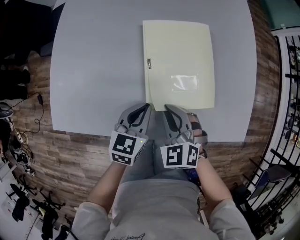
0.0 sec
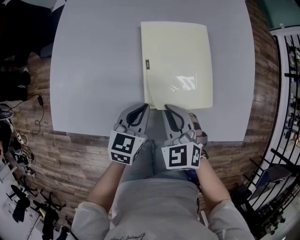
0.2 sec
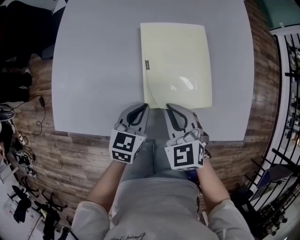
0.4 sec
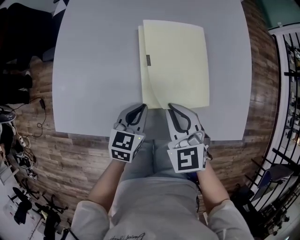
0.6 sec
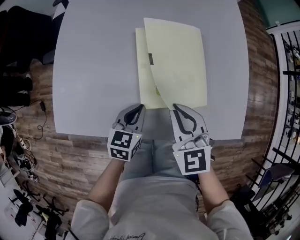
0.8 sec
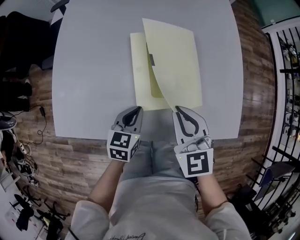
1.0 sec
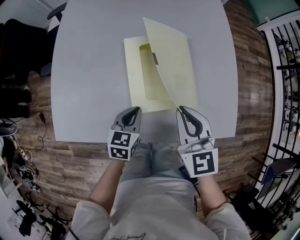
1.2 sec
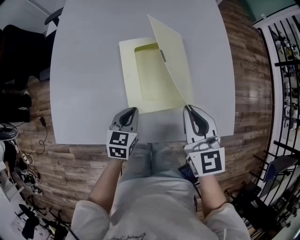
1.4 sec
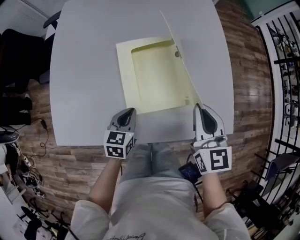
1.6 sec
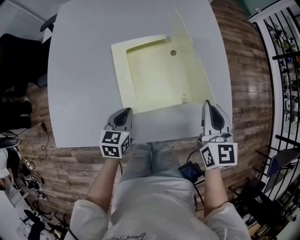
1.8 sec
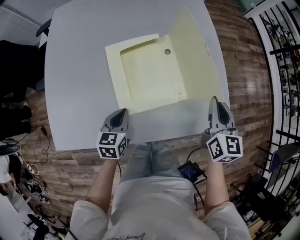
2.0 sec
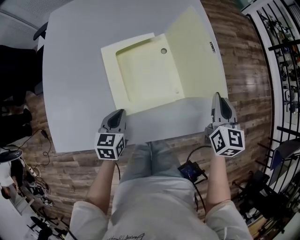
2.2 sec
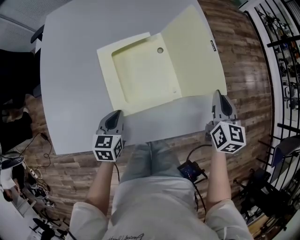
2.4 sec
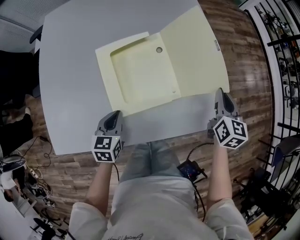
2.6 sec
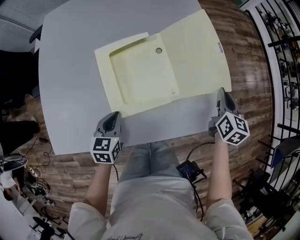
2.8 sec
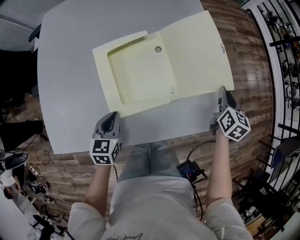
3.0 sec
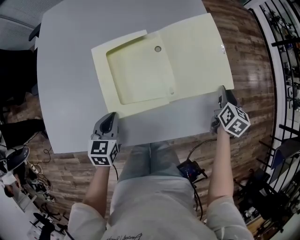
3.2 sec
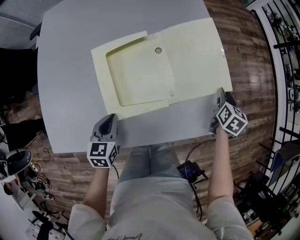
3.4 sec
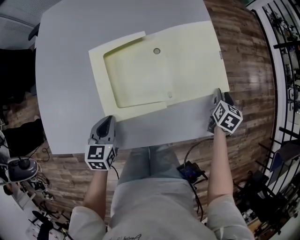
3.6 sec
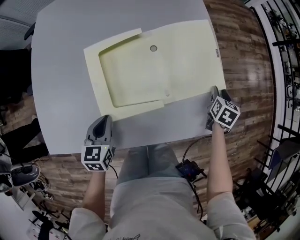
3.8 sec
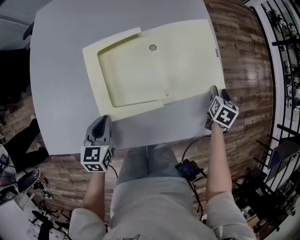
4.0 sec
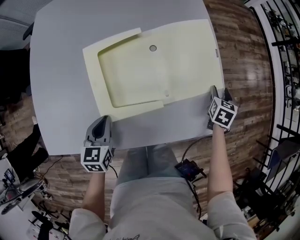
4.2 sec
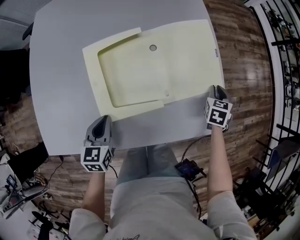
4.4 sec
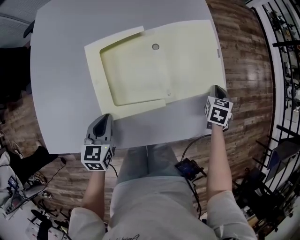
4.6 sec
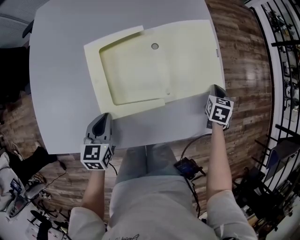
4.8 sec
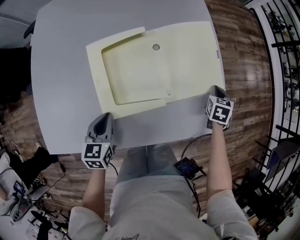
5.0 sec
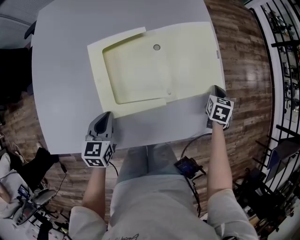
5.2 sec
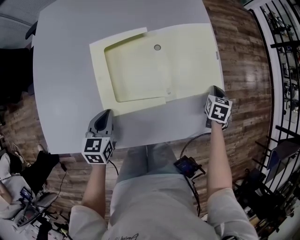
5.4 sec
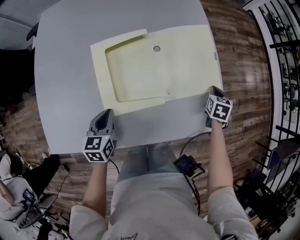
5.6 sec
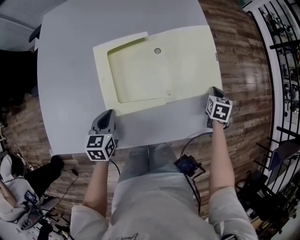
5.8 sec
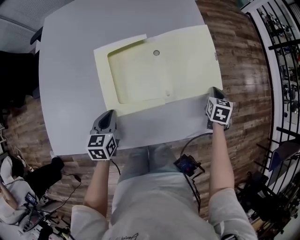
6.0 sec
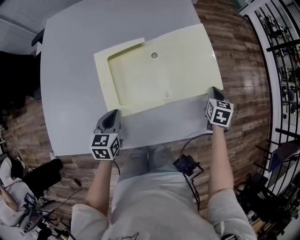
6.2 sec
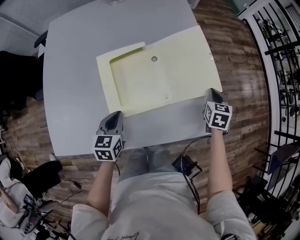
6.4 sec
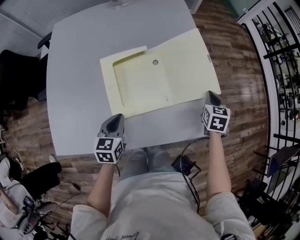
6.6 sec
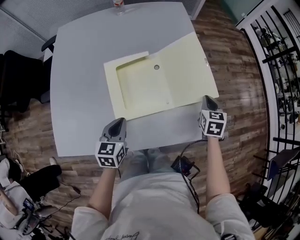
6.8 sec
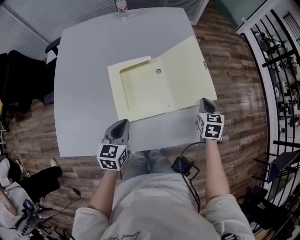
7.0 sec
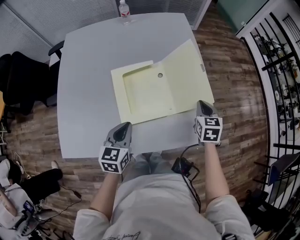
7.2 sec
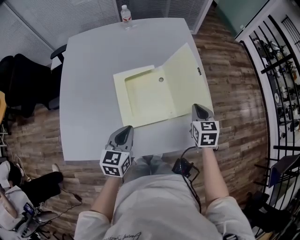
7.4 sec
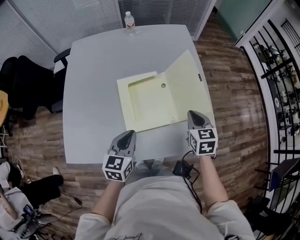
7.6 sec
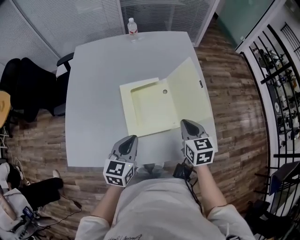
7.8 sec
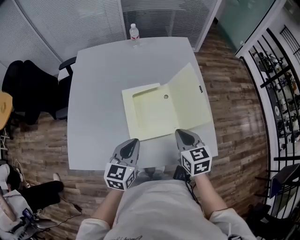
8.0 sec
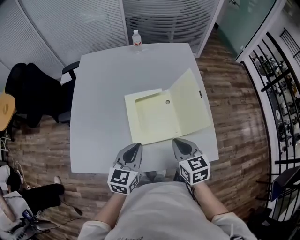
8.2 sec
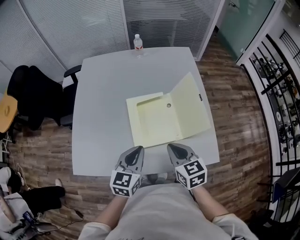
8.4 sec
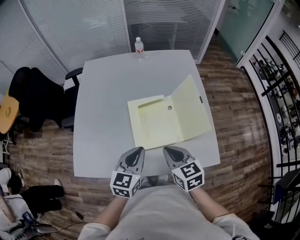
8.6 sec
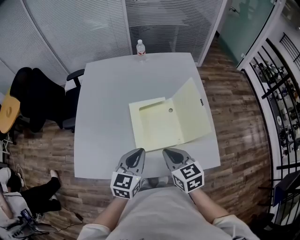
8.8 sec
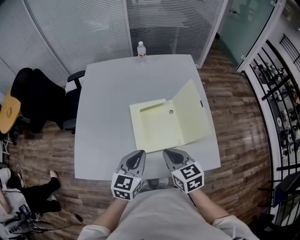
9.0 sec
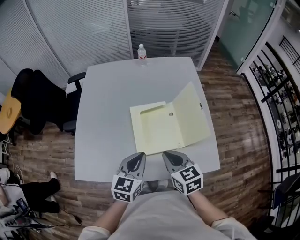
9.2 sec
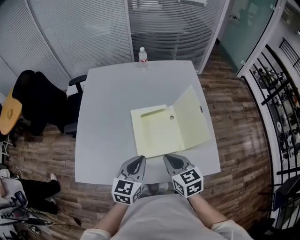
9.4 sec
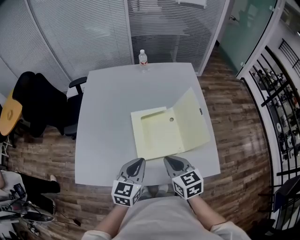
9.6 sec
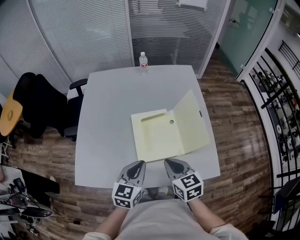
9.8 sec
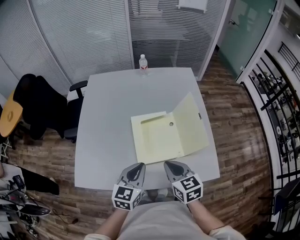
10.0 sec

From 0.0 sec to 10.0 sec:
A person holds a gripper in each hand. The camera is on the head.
From 0.0 sec to 1.4 sec: The right gripper moves upward and to the right, about 15 cm, and swivels some 40 degrees.
From 1.4 sec to 2.8 sec: The right gripper shifts some 25 cm to the right, and rotates roughly 40 degrees.
From 2.8 sec to 4.2 sec: The right gripper shifts approximately 15 cm downward and to the right, turns by approximately 30 degrees, and opens its fingers.
From 4.2 sec to 5.8 sec: The right gripper closes its fingers.
From 5.8 sec to 7.2 sec: The left gripper heads upward, covering roughly 10 cm. Meanwhile the right gripper moves upward and to the left, approximately 20 cm.
From 7.2 sec to 8.6 sec: The left gripper is displaced upward by approximately 10 cm. The right gripper moves to the left, backward and upward, about 25 cm, and swivels approximately 30 degrees.
From 8.6 sec to 10.0 sec: There are only small adjustments of the grippers.

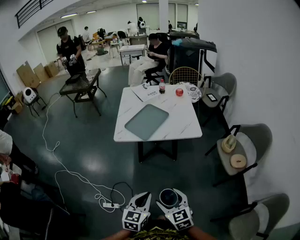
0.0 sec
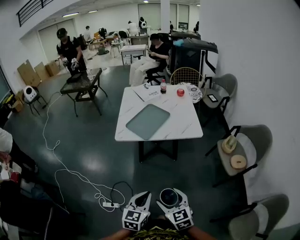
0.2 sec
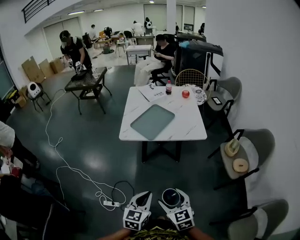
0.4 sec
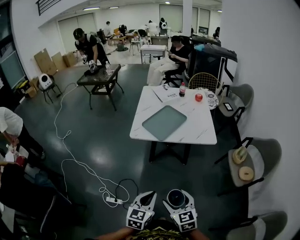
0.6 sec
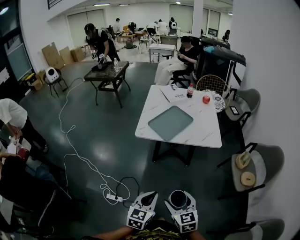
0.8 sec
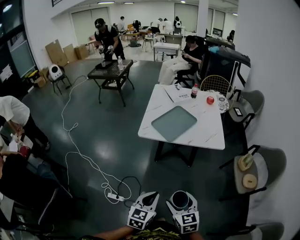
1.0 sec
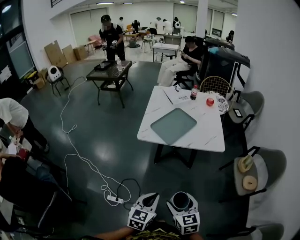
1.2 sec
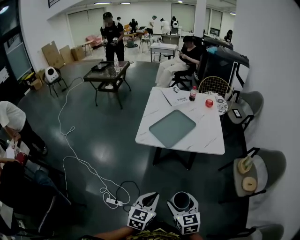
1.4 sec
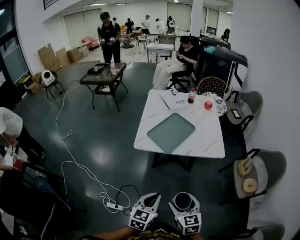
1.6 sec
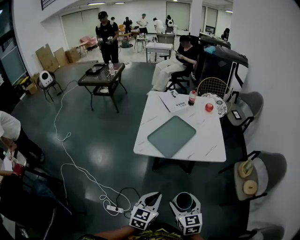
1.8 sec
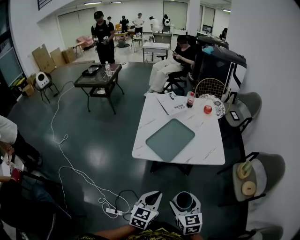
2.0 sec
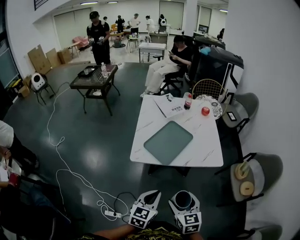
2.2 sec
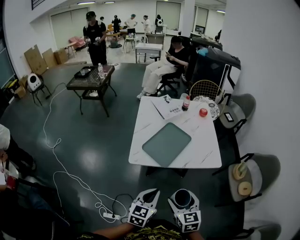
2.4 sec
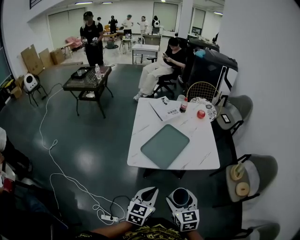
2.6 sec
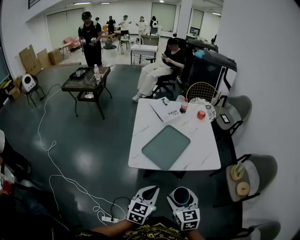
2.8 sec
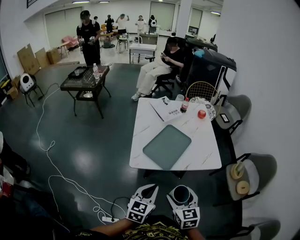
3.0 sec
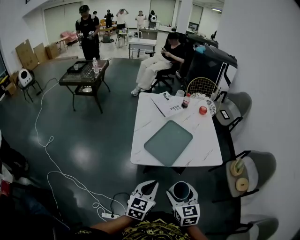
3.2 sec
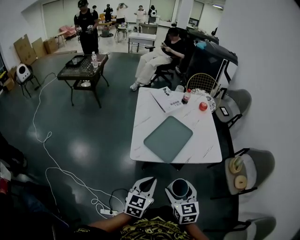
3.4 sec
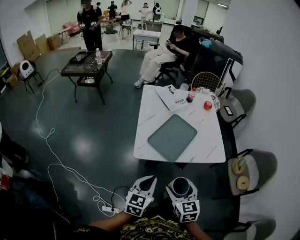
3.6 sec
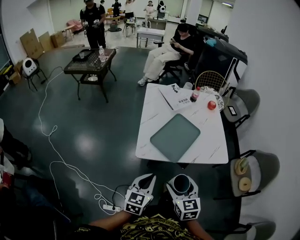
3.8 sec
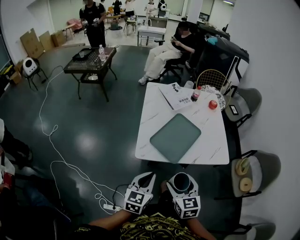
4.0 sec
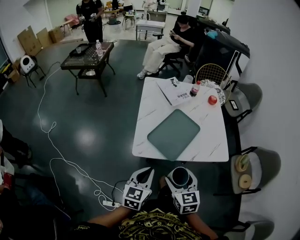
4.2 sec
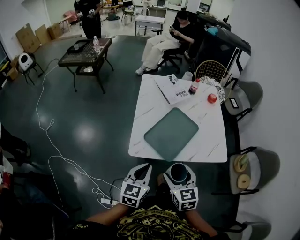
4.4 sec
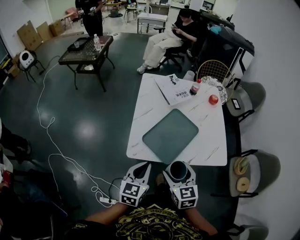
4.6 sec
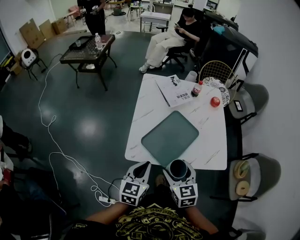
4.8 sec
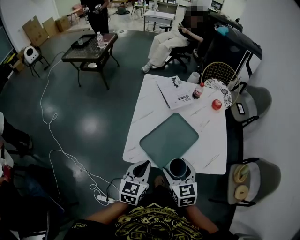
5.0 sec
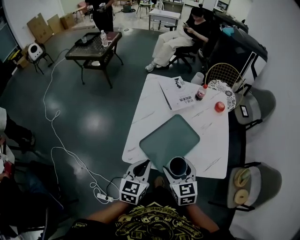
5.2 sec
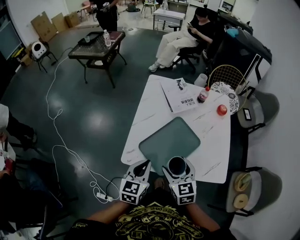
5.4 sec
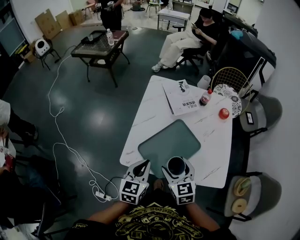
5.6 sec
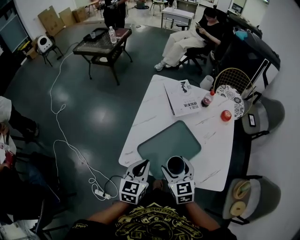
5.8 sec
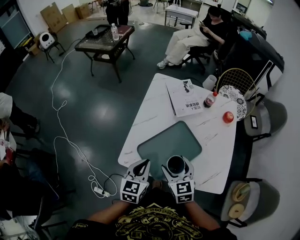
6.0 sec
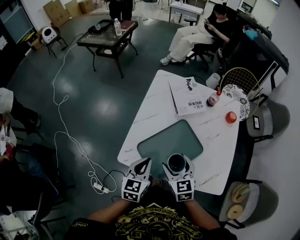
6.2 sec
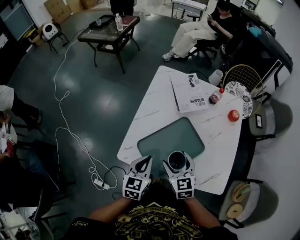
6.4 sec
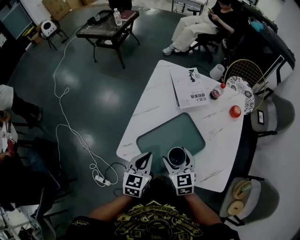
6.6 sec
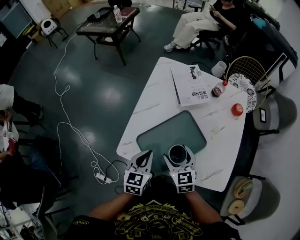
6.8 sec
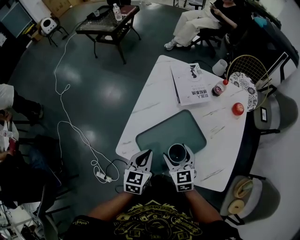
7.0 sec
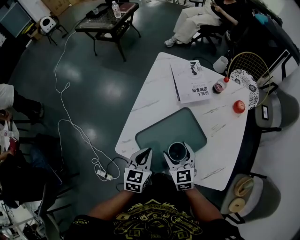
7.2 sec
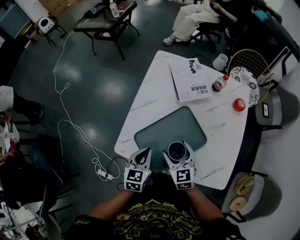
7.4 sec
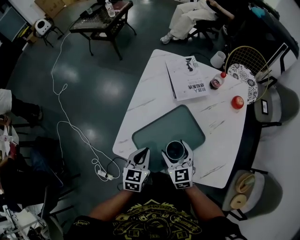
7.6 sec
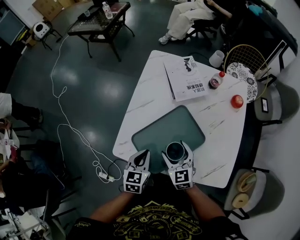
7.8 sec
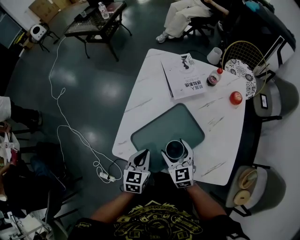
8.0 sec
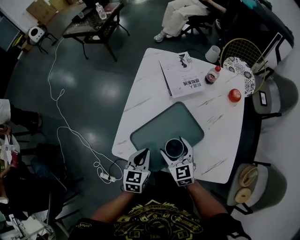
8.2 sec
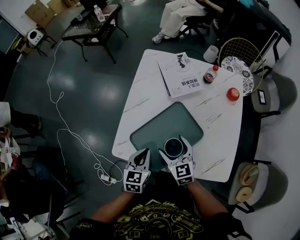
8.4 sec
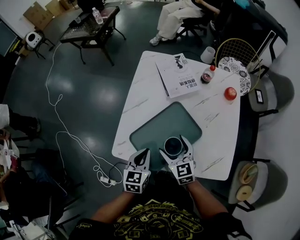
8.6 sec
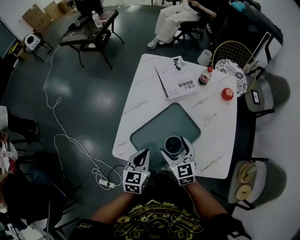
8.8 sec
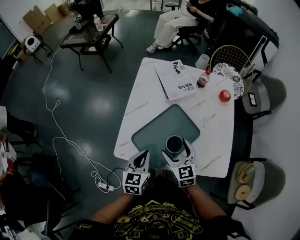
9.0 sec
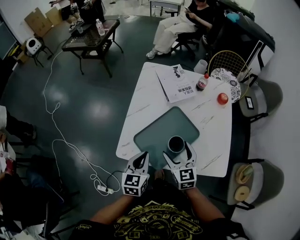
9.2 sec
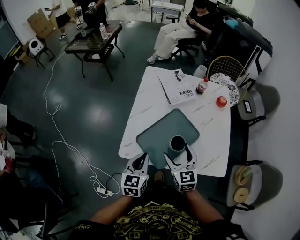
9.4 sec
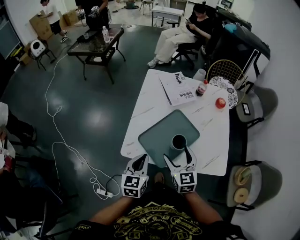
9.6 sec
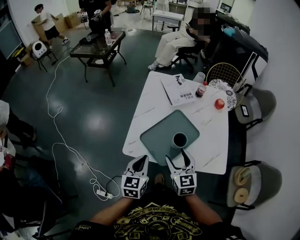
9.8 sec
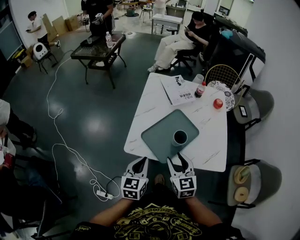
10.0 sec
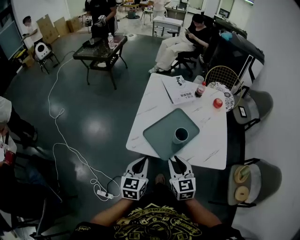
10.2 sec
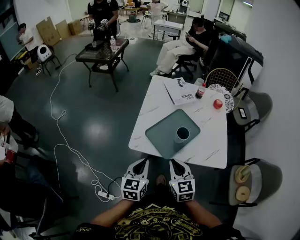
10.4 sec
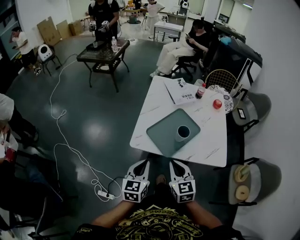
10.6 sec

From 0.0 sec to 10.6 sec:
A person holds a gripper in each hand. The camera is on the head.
From 0.0 sec to 1.6 sec: The grippers both shift forward by some 10 cm.
From 1.6 sec to 3.0 sec: The grippers both shift forward and to the left by approximately 15 cm.
From 3.0 sec to 4.6 sec: The two grippers go roughly 10 cm forward.
From 4.6 sec to 6.0 sec: Both grippers travel together forward, some 10 cm.
From 6.0 sec to 7.6 sec: The grippers both shift downward by approximately 10 cm.
From 7.6 sec to 9.0 sec: There are only small adjustments of the grippers.
From 9.0 sec to 10.6 sec: The right gripper travels backward and upward by some 20 cm, and closes its fingers. The left gripper heads backward, upward and to the left, covering some 20 cm.

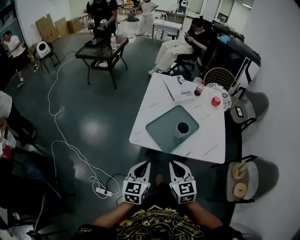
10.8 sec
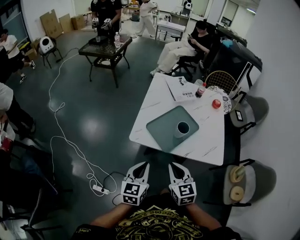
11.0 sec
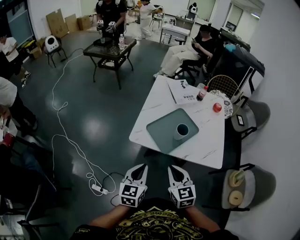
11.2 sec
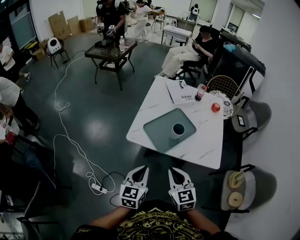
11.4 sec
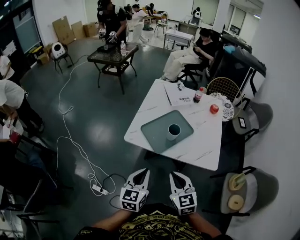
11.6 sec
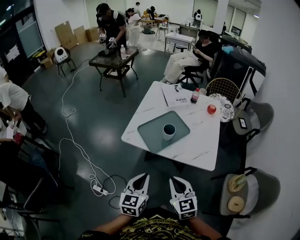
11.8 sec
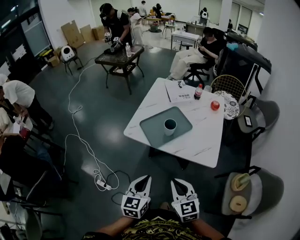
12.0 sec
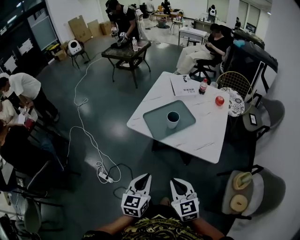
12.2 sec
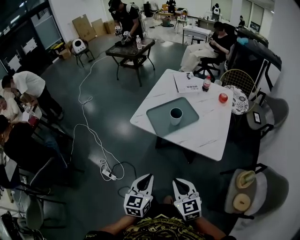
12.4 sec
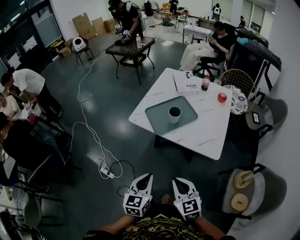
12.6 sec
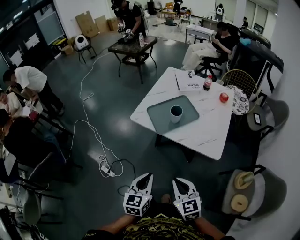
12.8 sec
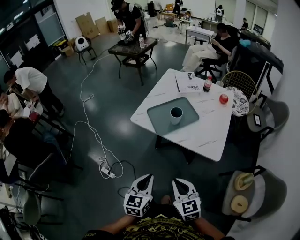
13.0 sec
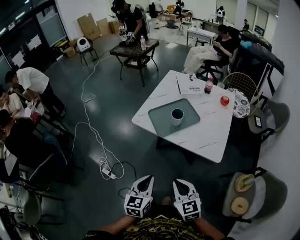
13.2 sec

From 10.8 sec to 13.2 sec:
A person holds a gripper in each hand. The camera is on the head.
From 10.8 sec to 12.0 sec: Both grippers travel together backward and to the right, some 20 cm.
From 12.0 sec to 13.2 sec: The grippers both shift backward by about 5 cm.

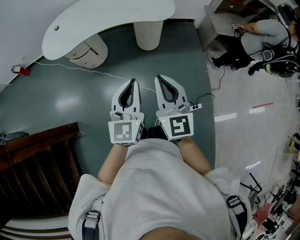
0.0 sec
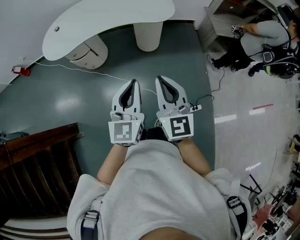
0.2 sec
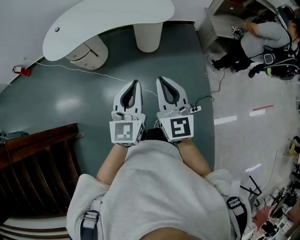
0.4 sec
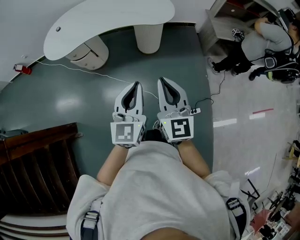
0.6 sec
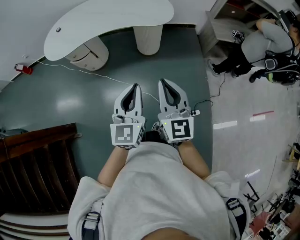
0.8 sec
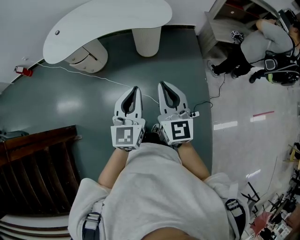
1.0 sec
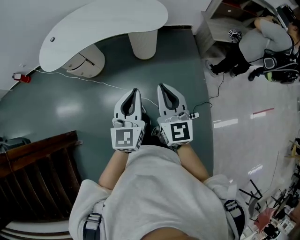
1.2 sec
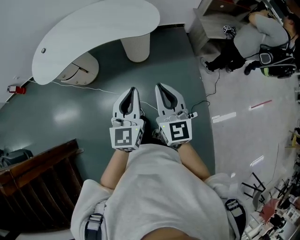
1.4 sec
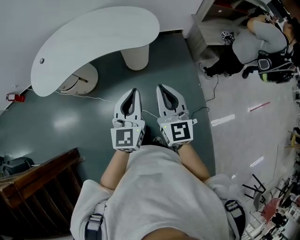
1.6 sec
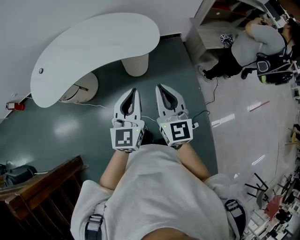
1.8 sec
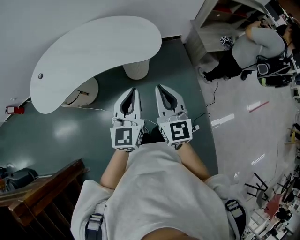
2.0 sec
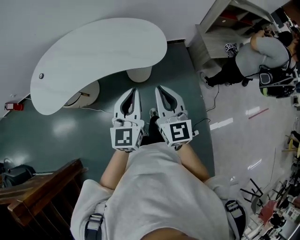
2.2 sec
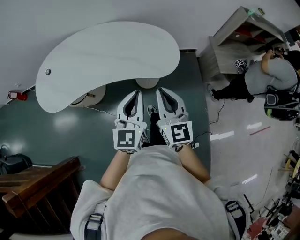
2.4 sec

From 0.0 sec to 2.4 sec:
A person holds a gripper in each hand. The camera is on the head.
From 0.0 sec to 1.2 sec: The grippers both shift to the right by some 5 cm.
From 1.2 sec to 2.4 sec: The two grippers go some 35 cm forward.
